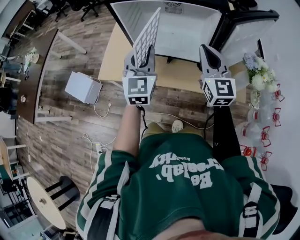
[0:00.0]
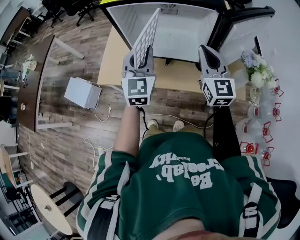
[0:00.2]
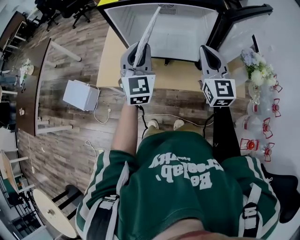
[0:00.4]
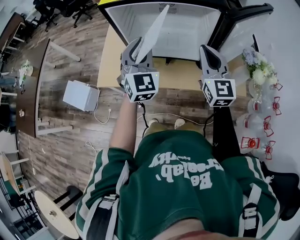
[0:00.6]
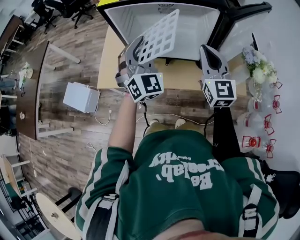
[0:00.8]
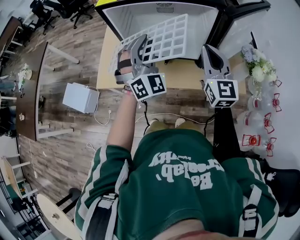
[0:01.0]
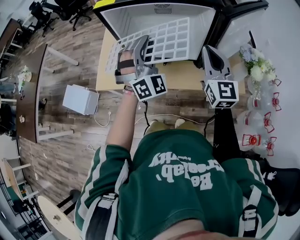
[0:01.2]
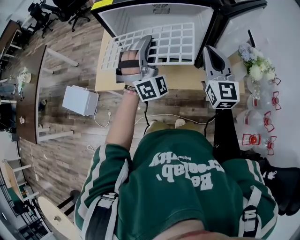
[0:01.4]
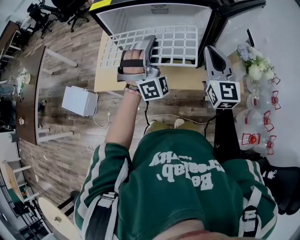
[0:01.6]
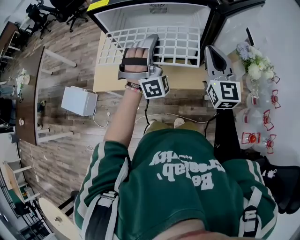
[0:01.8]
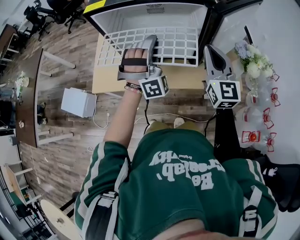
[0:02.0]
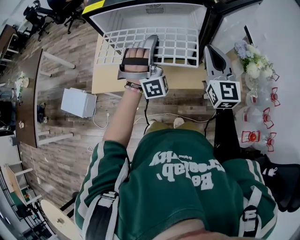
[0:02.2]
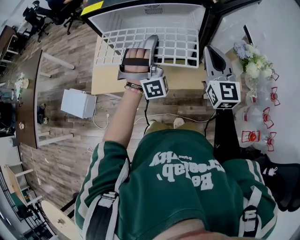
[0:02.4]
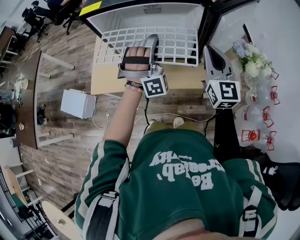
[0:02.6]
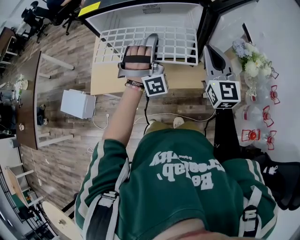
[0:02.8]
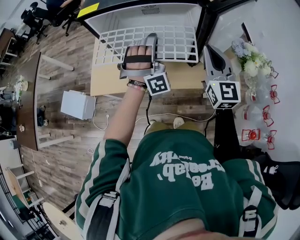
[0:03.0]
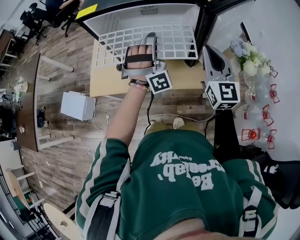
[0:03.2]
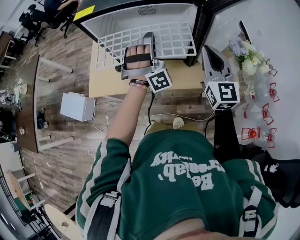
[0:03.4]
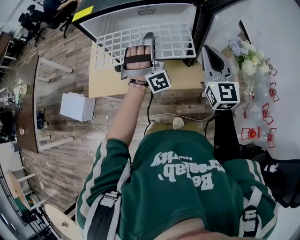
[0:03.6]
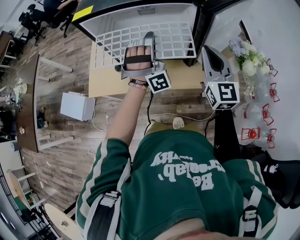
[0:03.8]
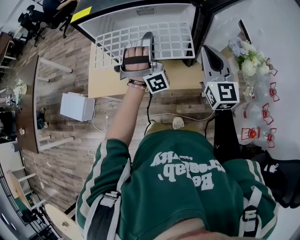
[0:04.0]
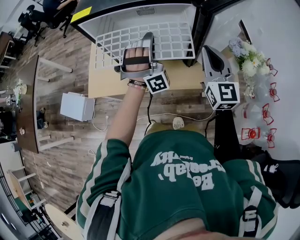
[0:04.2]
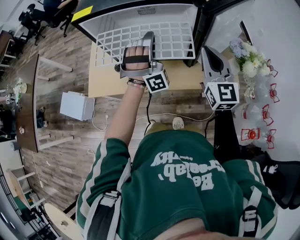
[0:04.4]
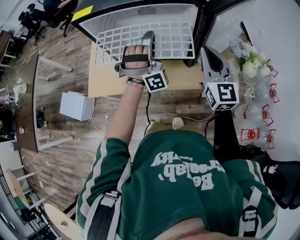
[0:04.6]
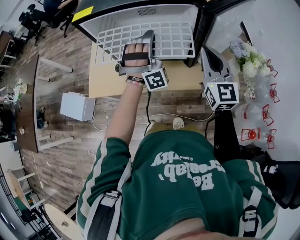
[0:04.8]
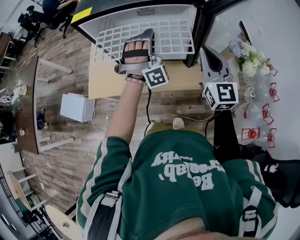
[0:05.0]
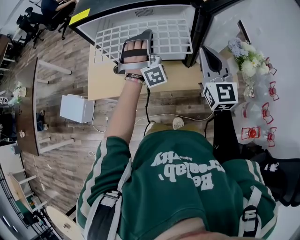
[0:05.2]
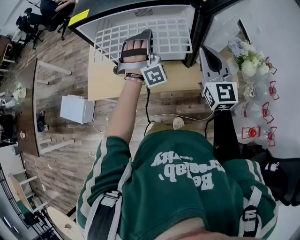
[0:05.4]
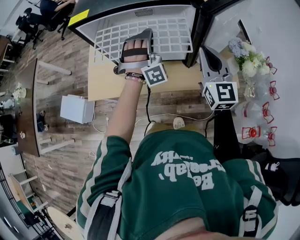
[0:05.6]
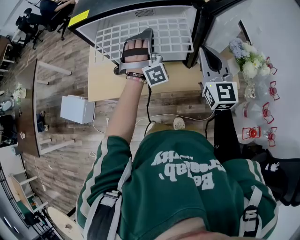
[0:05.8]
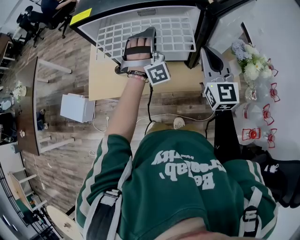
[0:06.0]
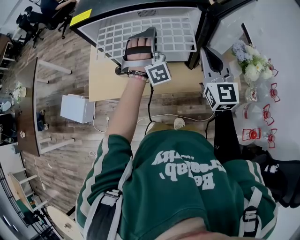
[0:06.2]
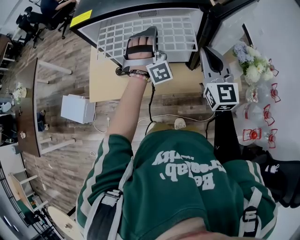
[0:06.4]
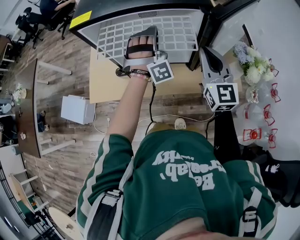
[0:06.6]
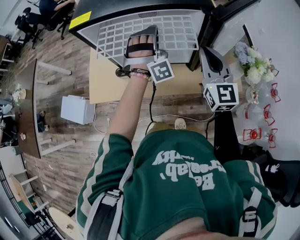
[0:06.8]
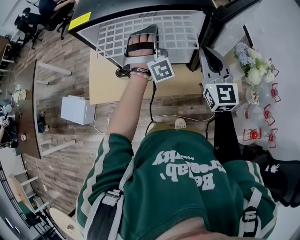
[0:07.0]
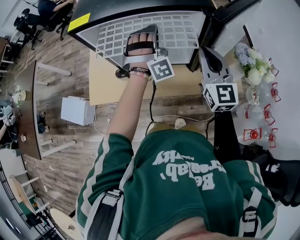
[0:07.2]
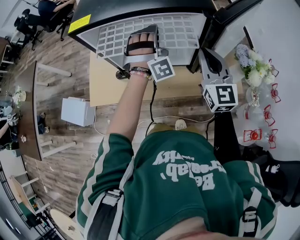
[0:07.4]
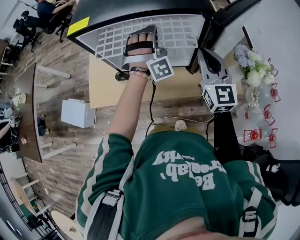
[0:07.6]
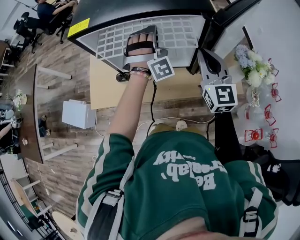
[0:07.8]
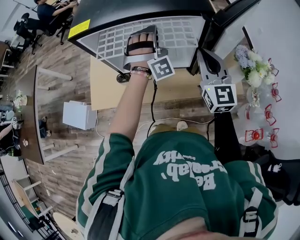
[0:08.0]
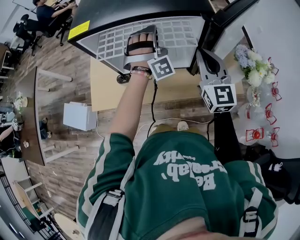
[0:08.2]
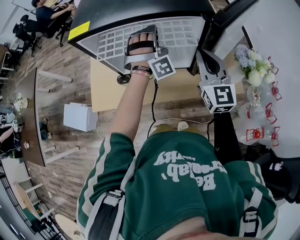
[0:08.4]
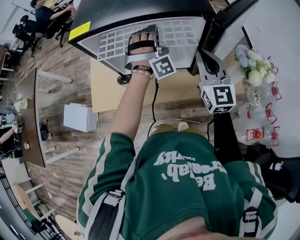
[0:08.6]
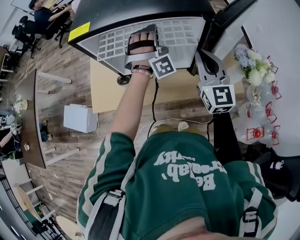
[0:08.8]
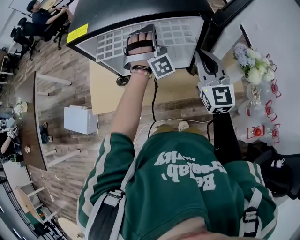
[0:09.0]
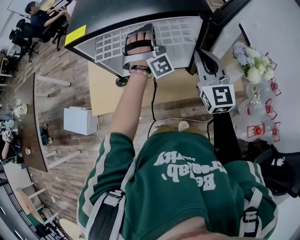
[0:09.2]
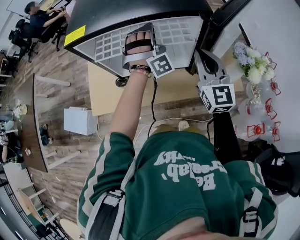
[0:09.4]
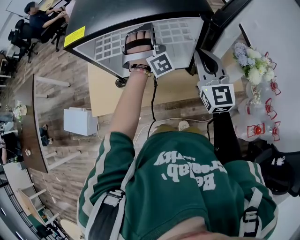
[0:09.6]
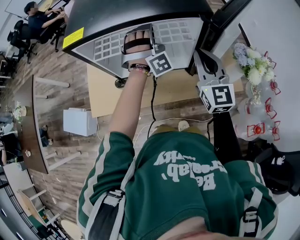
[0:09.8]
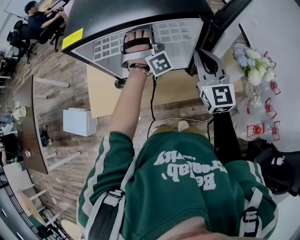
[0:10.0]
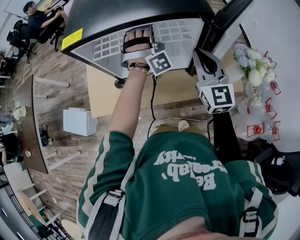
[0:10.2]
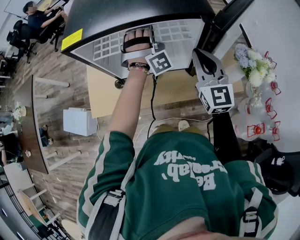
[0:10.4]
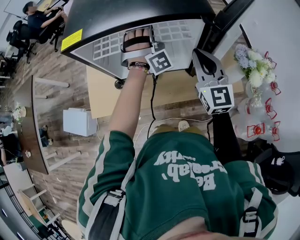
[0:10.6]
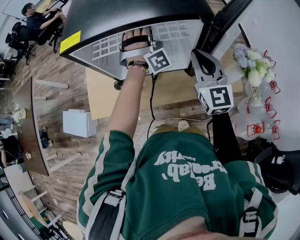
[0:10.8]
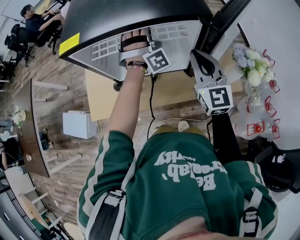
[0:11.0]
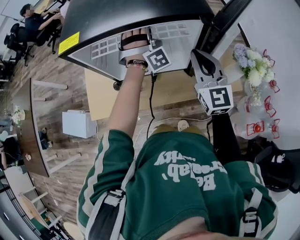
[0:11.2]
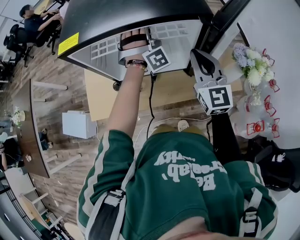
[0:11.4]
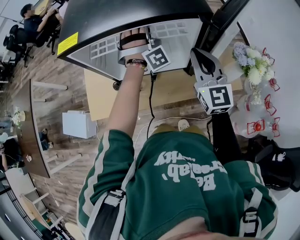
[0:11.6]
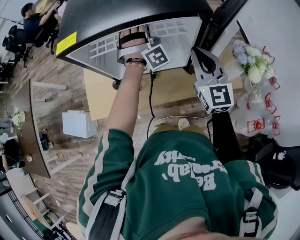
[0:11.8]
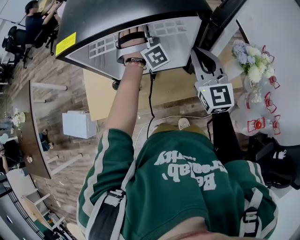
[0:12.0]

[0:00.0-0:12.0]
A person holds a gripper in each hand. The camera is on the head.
0.0 to 1.6 s: The left gripper moves to the right, about 5 cm, and rotates around the line of its fingers by approximately 70 degrees, clockwise from behind.
1.6 to 3.0 s: The left gripper moves roughly 5 cm.
3.0 to 4.4 s: The grippers stay close to where they were, moving slightly.
4.4 to 6.0 s: The grippers stay close to where they were, moving slightly.
6.0 to 7.6 s: There are only small adjustments of the grippers.
7.6 to 10.4 s: The grippers move only a little.
10.4 to 12.0 s: The grippers stay close to where they were, moving slightly.

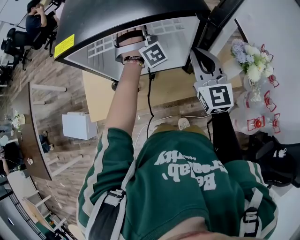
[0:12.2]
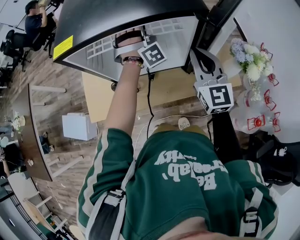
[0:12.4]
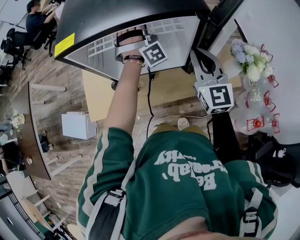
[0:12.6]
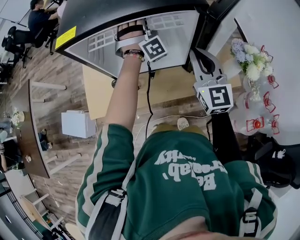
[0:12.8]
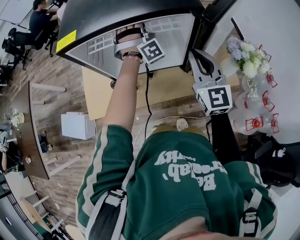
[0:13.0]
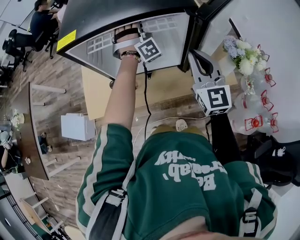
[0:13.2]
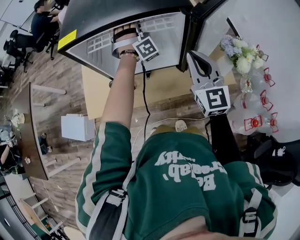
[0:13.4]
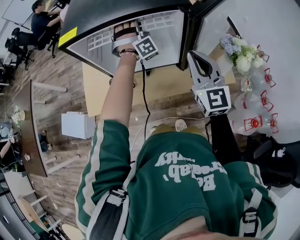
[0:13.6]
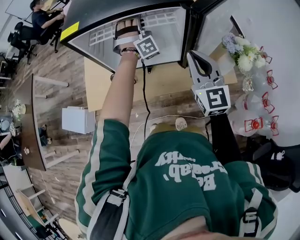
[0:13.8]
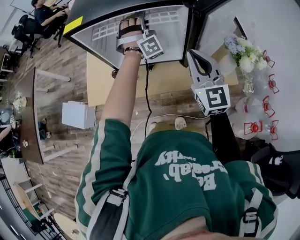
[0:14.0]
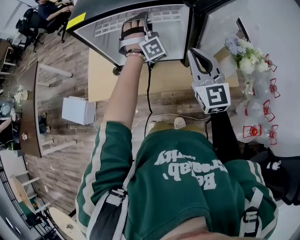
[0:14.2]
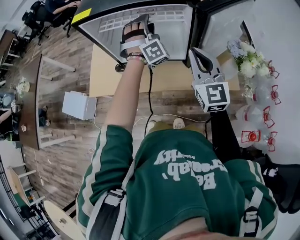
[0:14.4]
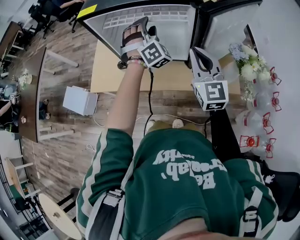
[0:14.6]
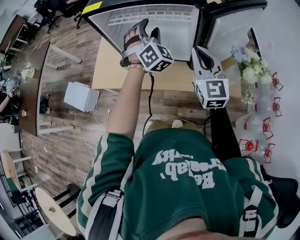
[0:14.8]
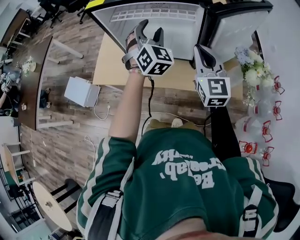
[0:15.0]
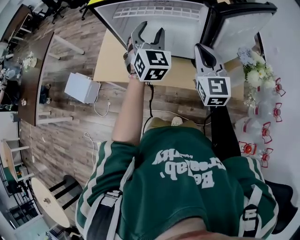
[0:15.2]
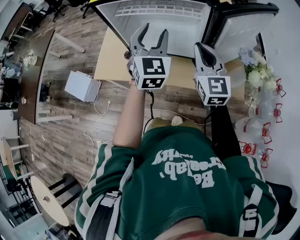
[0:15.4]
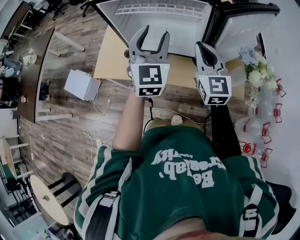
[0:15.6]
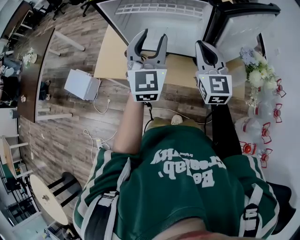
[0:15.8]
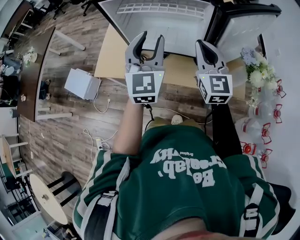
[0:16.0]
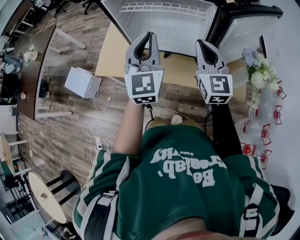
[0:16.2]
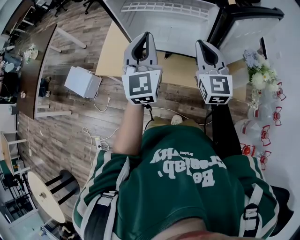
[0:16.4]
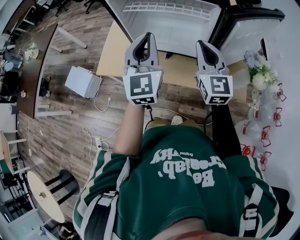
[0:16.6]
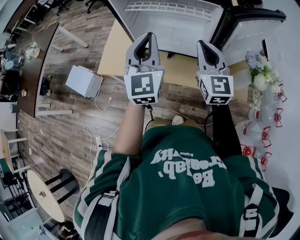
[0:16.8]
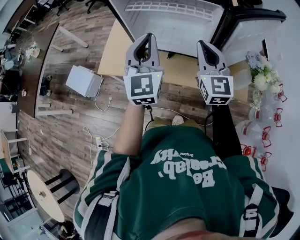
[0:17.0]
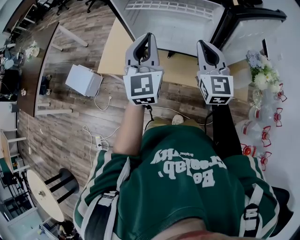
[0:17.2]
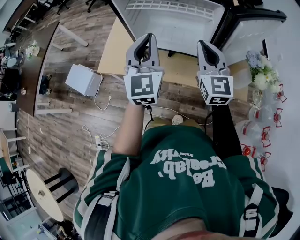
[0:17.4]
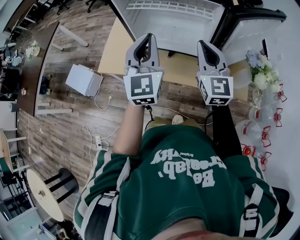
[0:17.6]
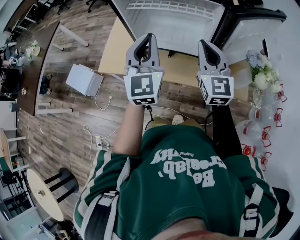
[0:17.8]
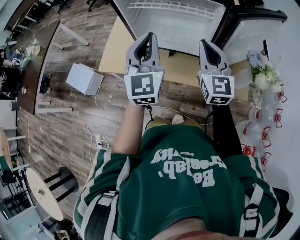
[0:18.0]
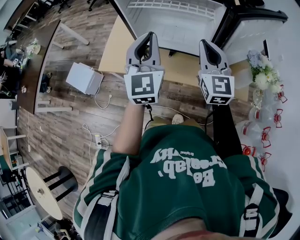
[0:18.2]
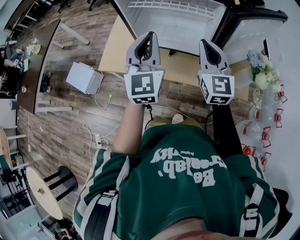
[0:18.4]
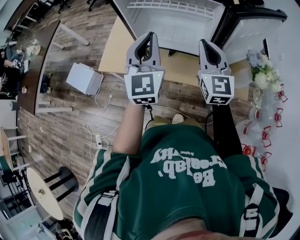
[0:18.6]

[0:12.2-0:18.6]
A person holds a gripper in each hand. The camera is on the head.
12.2 to 13.8 s: The left gripper opens up; the right gripper shifts roughly 5 cm backward.
13.8 to 15.4 s: The left gripper heads backward, upward and to the left, covering roughly 20 cm, and rolls counterclockwise, seen from behind, by about 70 degrees.
15.4 to 17.0 s: The left gripper shifts roughly 10 cm to the left and backward, and closes its fingers.
17.0 to 18.6 s: Neither gripper changes place.

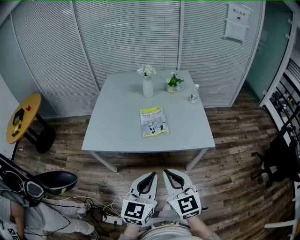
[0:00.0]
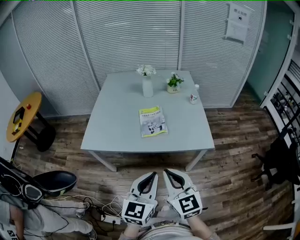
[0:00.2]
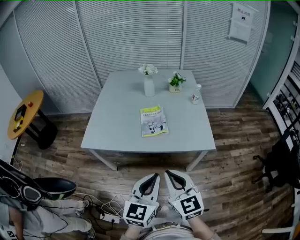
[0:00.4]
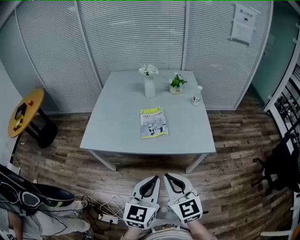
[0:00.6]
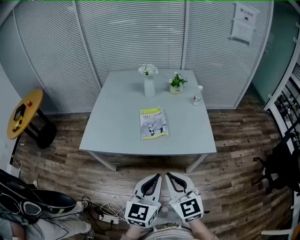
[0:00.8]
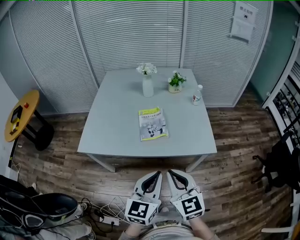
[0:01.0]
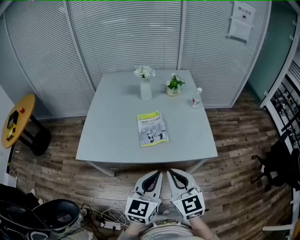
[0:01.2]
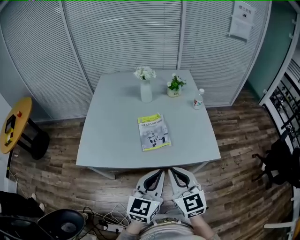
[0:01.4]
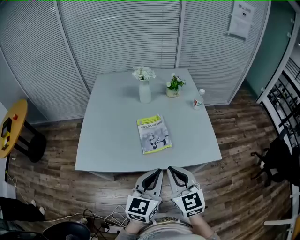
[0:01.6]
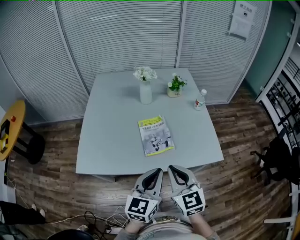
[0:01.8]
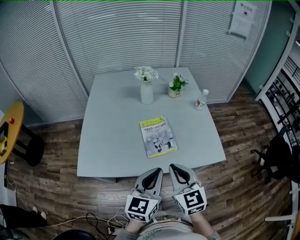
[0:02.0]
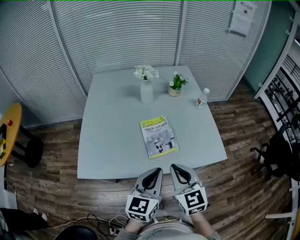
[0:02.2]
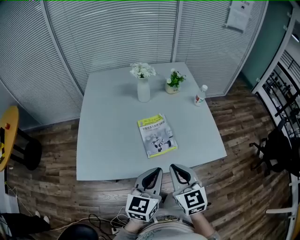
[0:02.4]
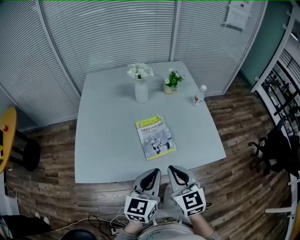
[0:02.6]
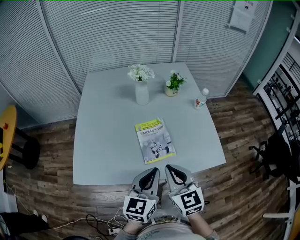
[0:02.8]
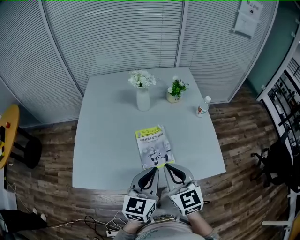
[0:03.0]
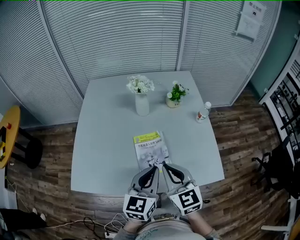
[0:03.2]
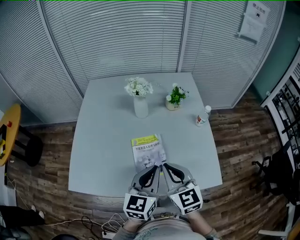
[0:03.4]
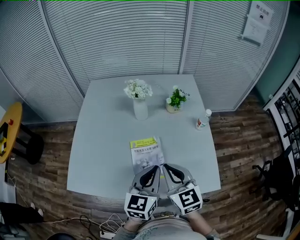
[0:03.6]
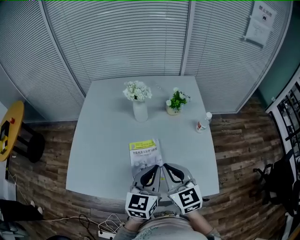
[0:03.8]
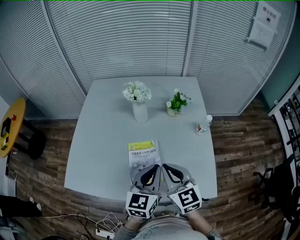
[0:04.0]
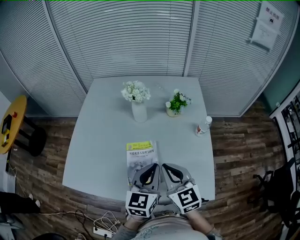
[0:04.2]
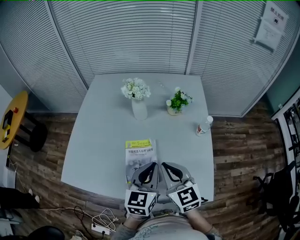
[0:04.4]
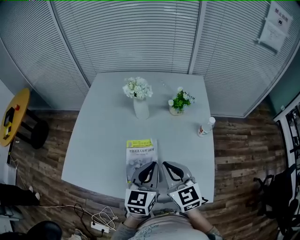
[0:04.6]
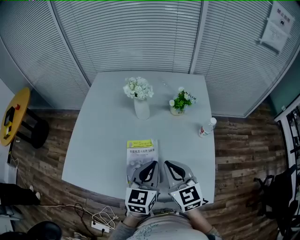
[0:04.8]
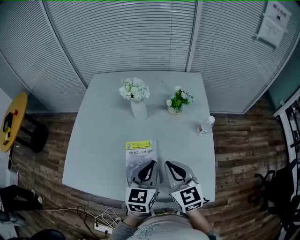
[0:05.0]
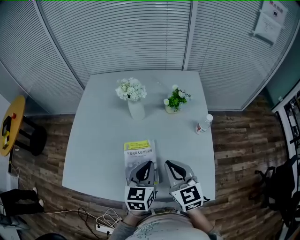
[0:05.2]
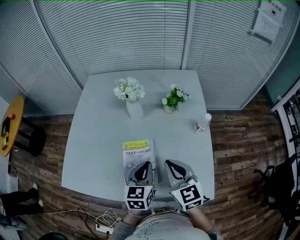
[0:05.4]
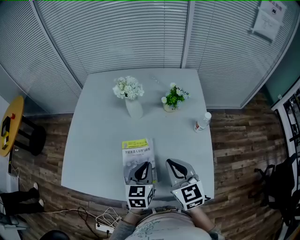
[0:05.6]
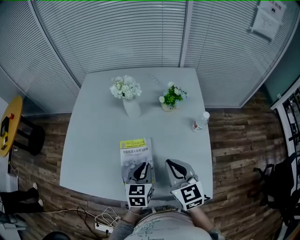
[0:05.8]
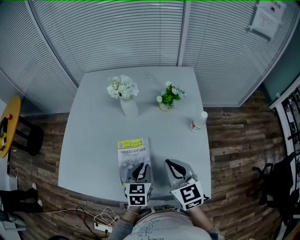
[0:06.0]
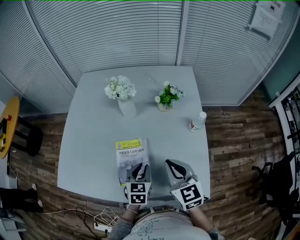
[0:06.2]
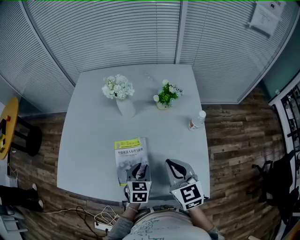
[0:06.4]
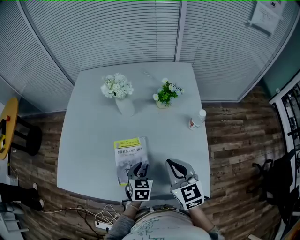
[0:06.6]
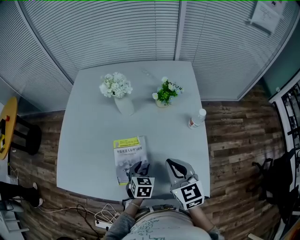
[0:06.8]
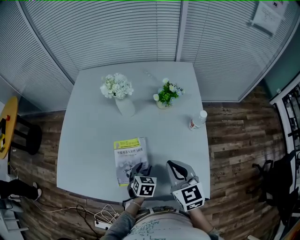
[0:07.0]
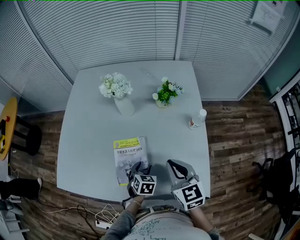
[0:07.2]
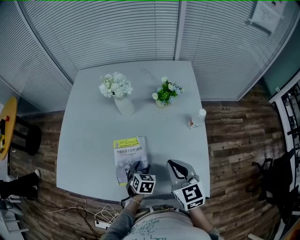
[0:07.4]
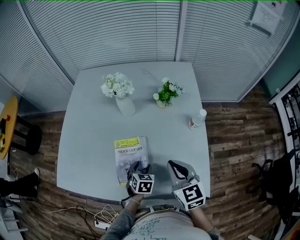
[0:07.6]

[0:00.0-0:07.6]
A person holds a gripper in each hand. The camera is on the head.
0.0 to 1.6 s: Both grippers travel together forward, about 20 cm.
1.6 to 3.0 s: The grippers both shift forward by approximately 15 cm.
3.0 to 4.6 s: Both grippers travel together forward and to the right, some 15 cm.
4.6 to 6.0 s: The left gripper goes about 10 cm downward, and rotates approximately 20 degrees; the right gripper heads to the right, covering some 5 cm.
6.0 to 7.6 s: The left gripper travels downward by about 10 cm, changes its angle by roughly 20 degrees, and opens.
